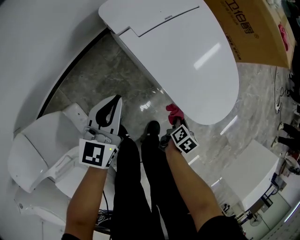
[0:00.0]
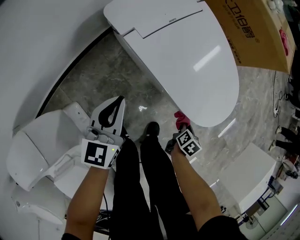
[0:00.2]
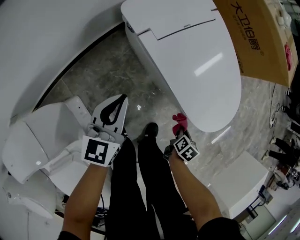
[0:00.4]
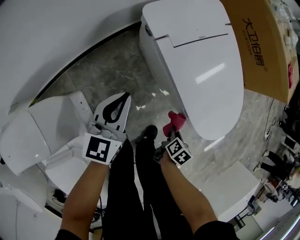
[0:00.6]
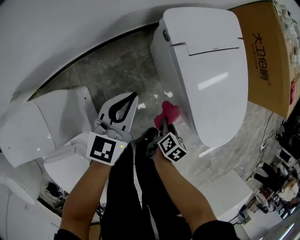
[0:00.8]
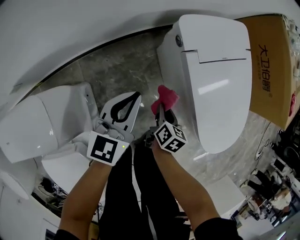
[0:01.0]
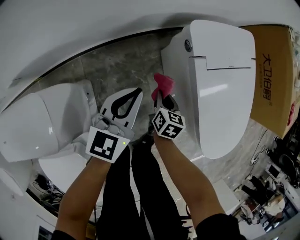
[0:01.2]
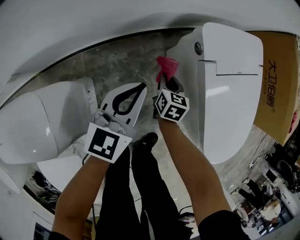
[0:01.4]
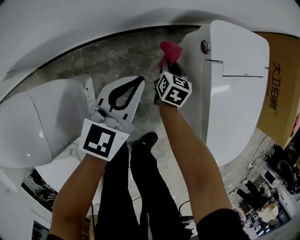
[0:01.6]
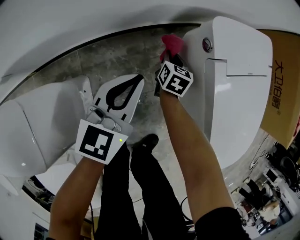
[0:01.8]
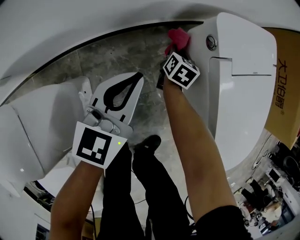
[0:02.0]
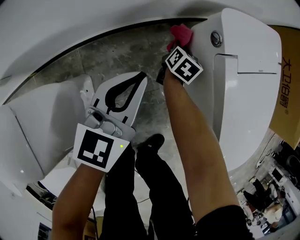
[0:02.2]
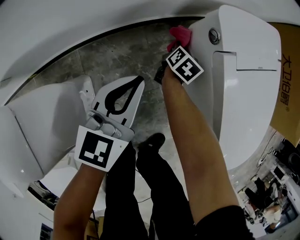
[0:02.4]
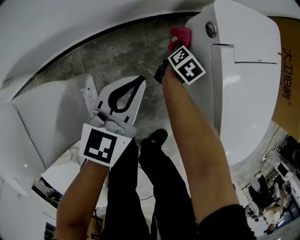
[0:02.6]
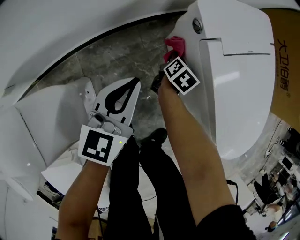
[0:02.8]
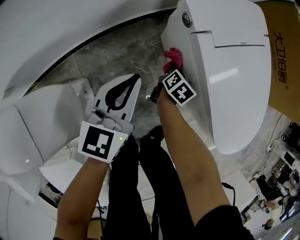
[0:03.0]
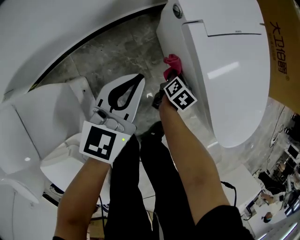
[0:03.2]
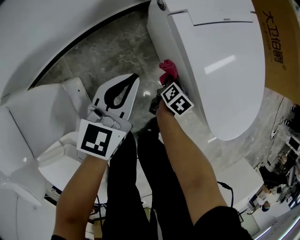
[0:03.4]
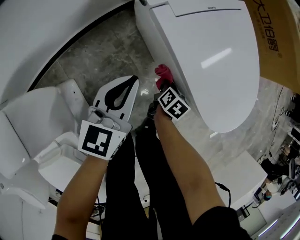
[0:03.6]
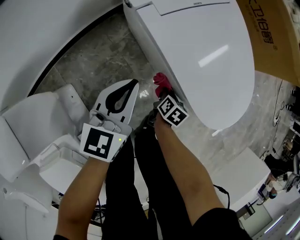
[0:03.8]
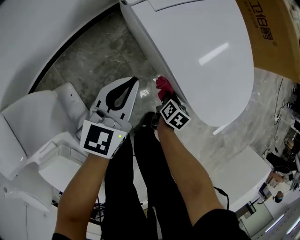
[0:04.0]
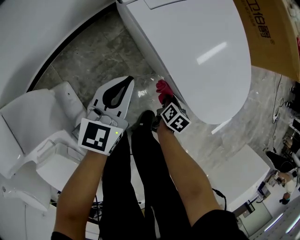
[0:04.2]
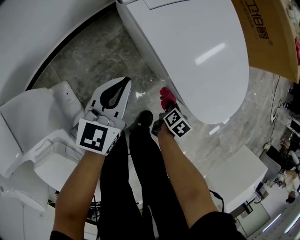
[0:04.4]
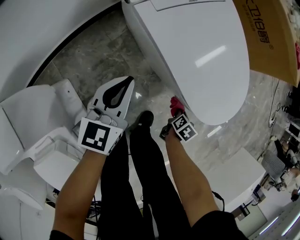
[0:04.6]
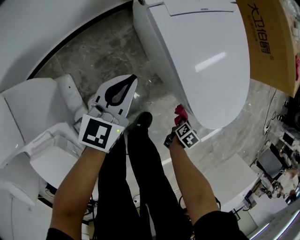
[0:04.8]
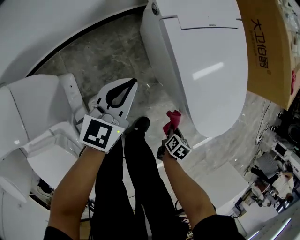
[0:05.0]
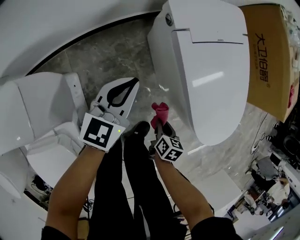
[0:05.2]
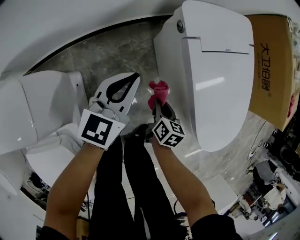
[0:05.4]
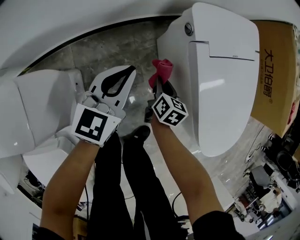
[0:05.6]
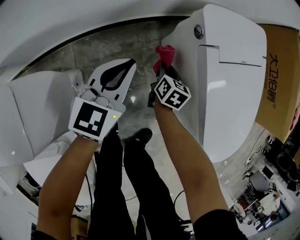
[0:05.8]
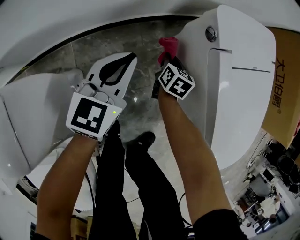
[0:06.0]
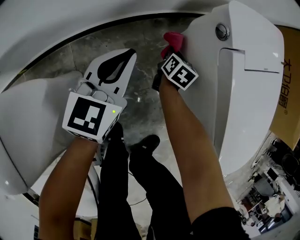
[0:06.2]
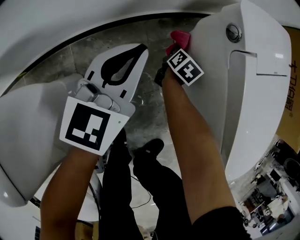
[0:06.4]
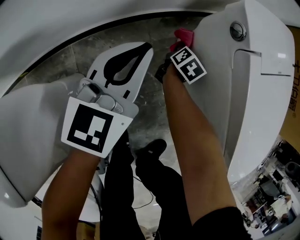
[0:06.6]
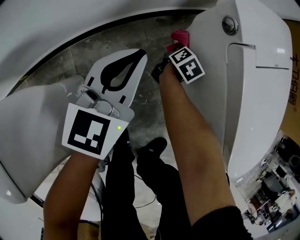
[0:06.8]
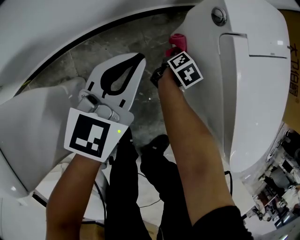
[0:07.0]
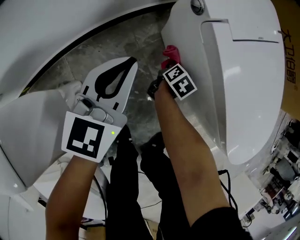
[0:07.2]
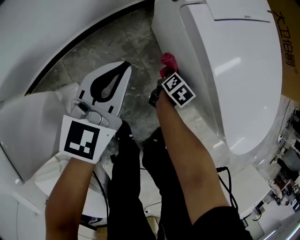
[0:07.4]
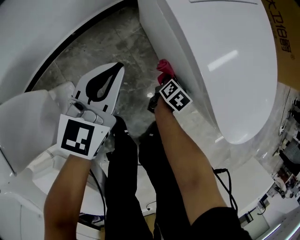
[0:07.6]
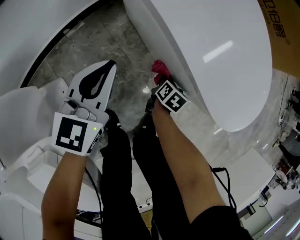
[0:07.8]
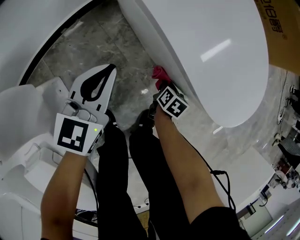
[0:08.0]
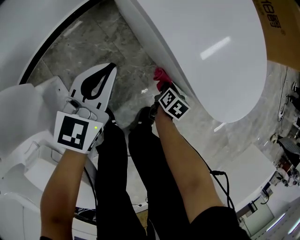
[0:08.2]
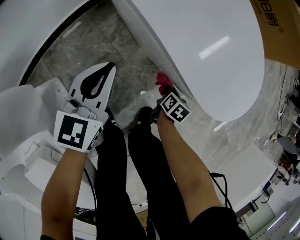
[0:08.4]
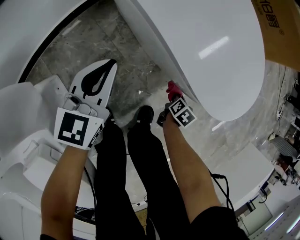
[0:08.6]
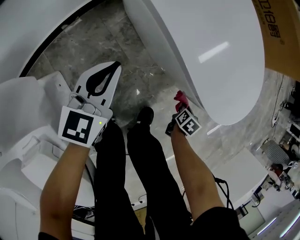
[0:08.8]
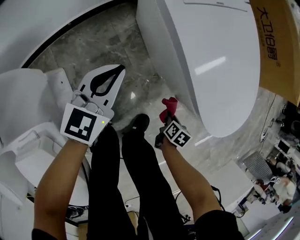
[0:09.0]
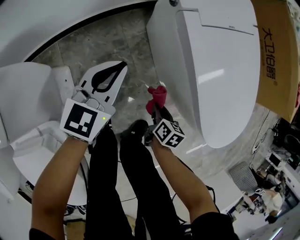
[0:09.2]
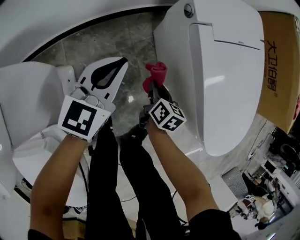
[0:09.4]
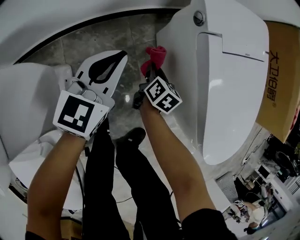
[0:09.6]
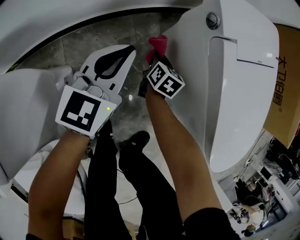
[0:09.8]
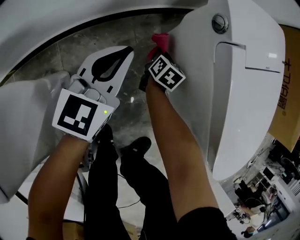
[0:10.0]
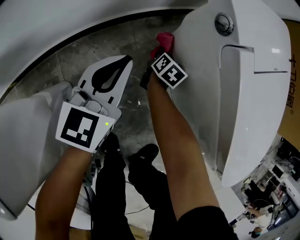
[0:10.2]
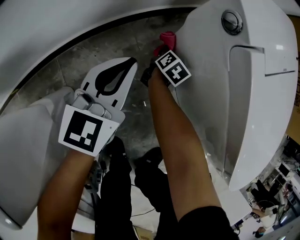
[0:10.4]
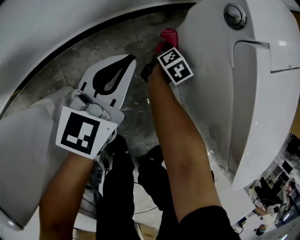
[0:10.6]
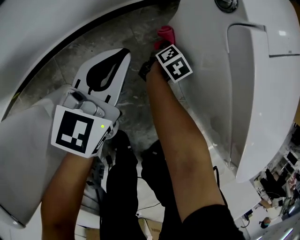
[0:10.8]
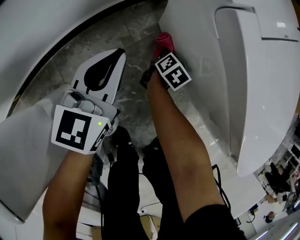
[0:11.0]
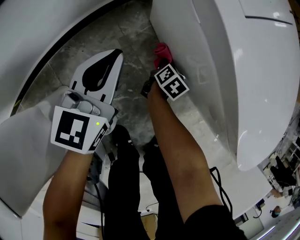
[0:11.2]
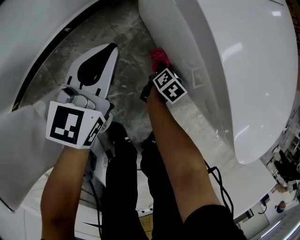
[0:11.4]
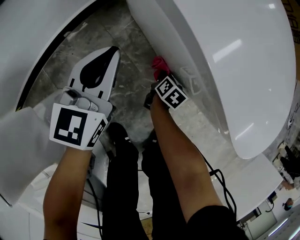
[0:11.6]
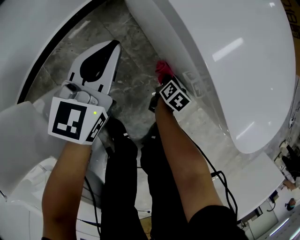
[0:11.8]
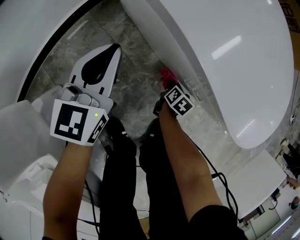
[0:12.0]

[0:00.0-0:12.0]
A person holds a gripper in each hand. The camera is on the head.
0:00.0 to 0:01.6: The right gripper shifts by some 40 cm, and rotates around the line of its fingers by approximately 50 degrees, counterclockwise from behind. Meanwhile the left gripper ends up roughly 15 cm from where it was.
0:01.6 to 0:03.0: The right gripper travels to the right by some 10 cm, and turns by about 40 degrees; the left gripper shifts approximately 5 cm to the right.
0:03.0 to 0:04.4: The left gripper travels to the right by about 15 cm. The right gripper goes some 30 cm to the right and backward.
0:04.4 to 0:06.0: The left gripper changes place by about 20 cm; the right gripper goes upward and returns, some 5 cm each way, and rotates approximately 50 degrees.
0:06.0 to 0:07.6: The right gripper shifts approximately 25 cm to the right and backward, and swivels some 40 degrees. Meanwhile the left gripper shifts approximately 10 cm to the right.
0:07.6 to 0:09.0: The right gripper shifts roughly 20 cm to the right and backward.
0:09.0 to 0:10.4: The left gripper is displaced forward, to the left and downward by about 20 cm. Meanwhile the right gripper travels forward and to the left by some 50 cm, and turns by approximately 20 degrees.
0:10.4 to 0:12.0: The left gripper travels to the right by approximately 15 cm. The right gripper shifts approximately 35 cm to the right and backward.

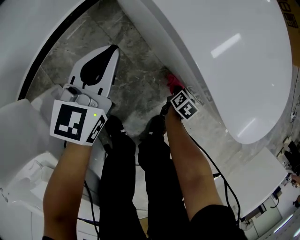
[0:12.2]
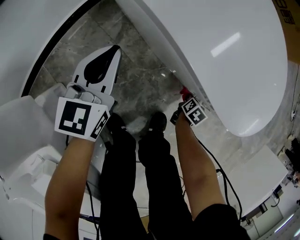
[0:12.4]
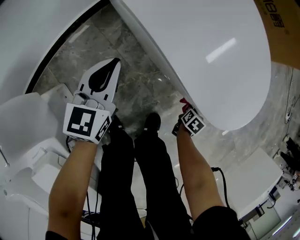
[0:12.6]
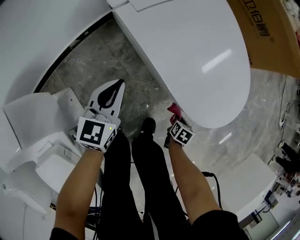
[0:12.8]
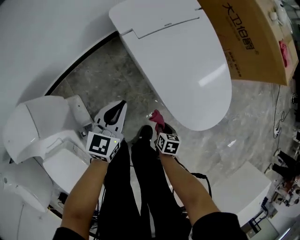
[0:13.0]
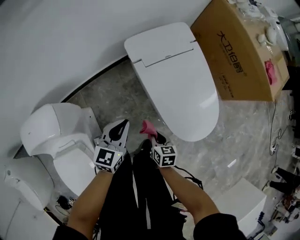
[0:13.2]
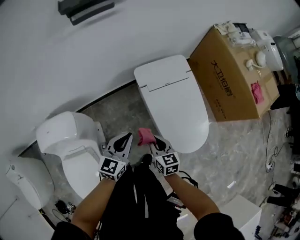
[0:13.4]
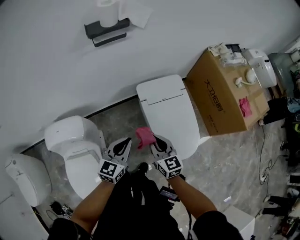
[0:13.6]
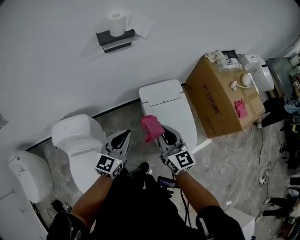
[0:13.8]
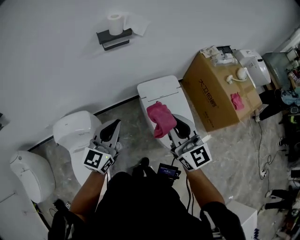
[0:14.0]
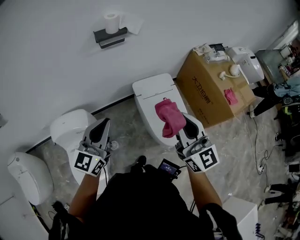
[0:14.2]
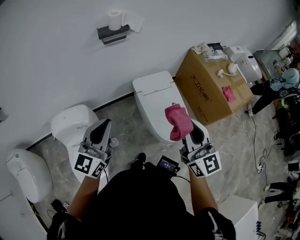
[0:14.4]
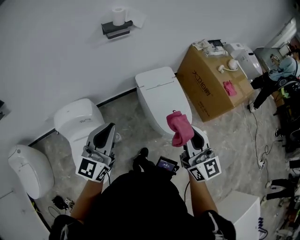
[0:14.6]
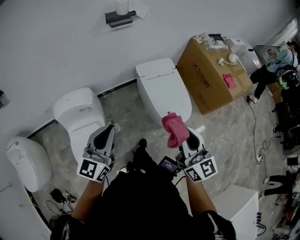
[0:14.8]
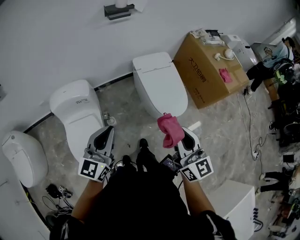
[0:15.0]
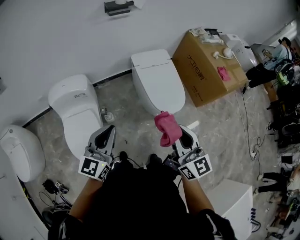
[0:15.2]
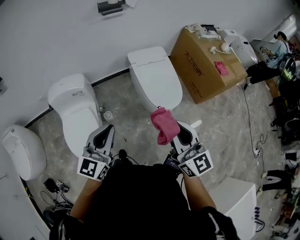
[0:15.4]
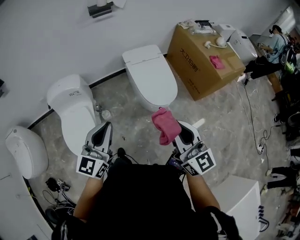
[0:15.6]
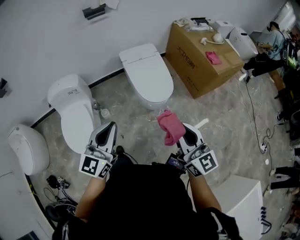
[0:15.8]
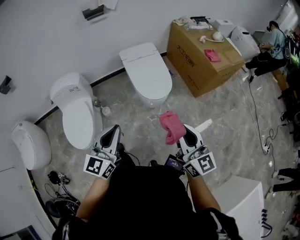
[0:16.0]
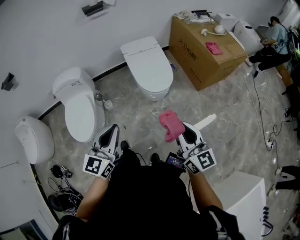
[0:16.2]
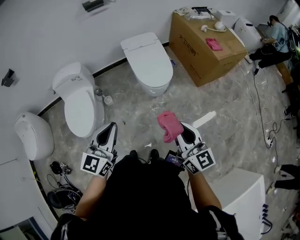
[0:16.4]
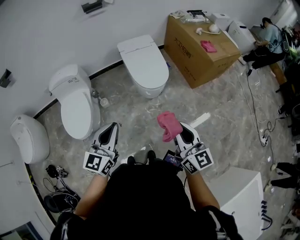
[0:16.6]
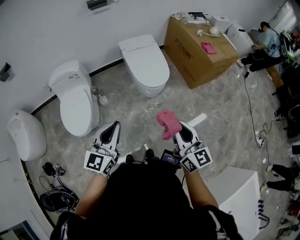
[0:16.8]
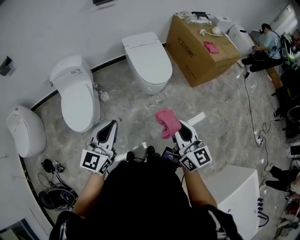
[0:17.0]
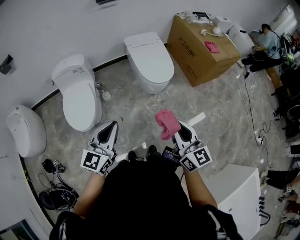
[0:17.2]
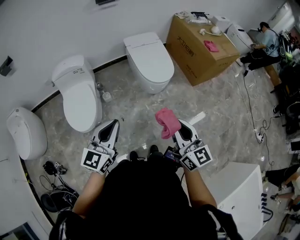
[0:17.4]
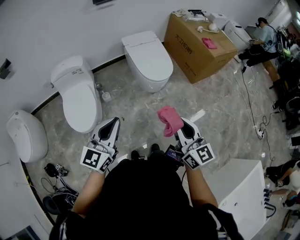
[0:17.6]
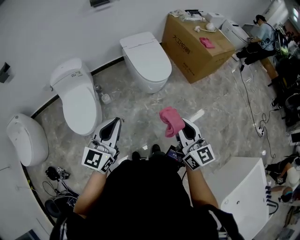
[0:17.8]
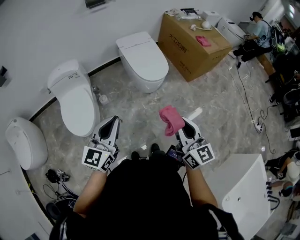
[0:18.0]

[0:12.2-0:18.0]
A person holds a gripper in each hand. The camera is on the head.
0:12.2 to 0:13.6: The left gripper shifts about 40 cm upward, while the right gripper shifts about 70 cm upward, and points its fingers about 40 degrees further upward.
0:13.6 to 0:15.0: Both grippers move backward and upward, roughly 35 cm. The right gripper rotates approximately 20 degrees.
0:15.0 to 0:16.6: Both grippers travel together backward and to the right, roughly 35 cm.
0:16.6 to 0:18.0: Both grippers travel together to the left and backward, about 10 cm.

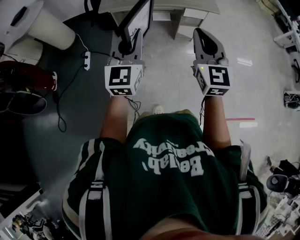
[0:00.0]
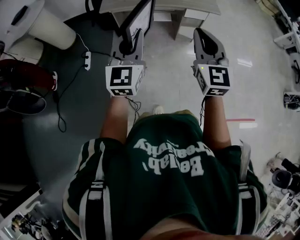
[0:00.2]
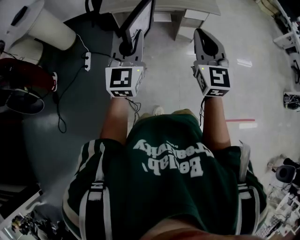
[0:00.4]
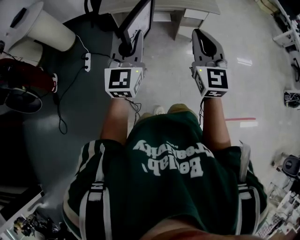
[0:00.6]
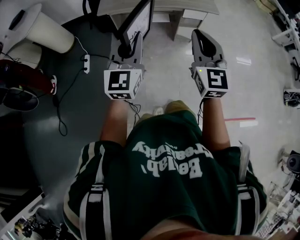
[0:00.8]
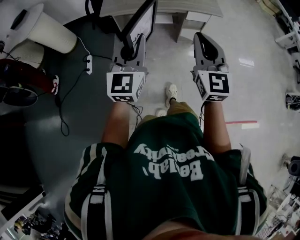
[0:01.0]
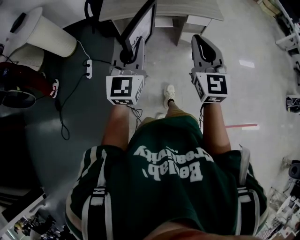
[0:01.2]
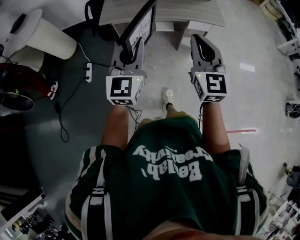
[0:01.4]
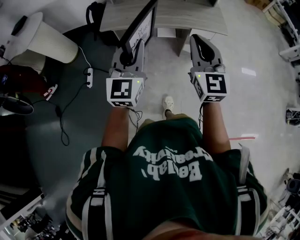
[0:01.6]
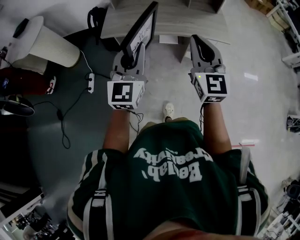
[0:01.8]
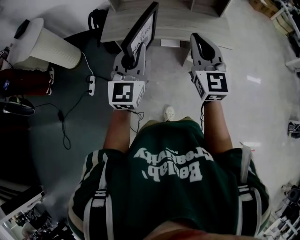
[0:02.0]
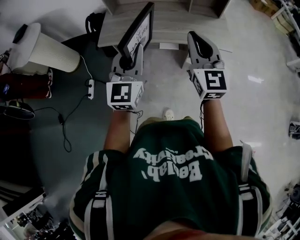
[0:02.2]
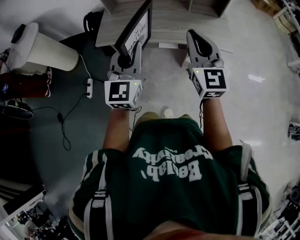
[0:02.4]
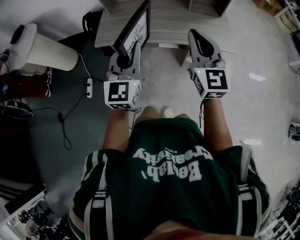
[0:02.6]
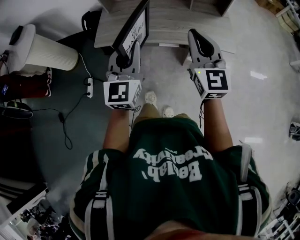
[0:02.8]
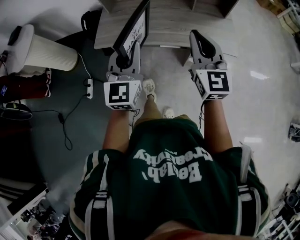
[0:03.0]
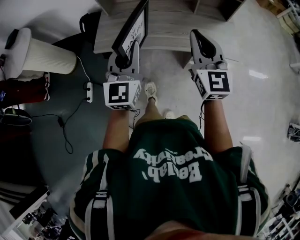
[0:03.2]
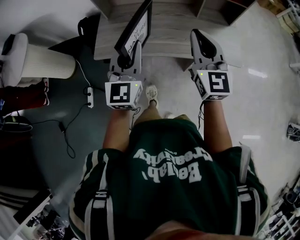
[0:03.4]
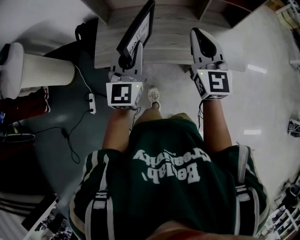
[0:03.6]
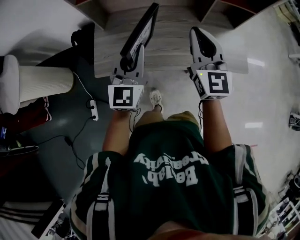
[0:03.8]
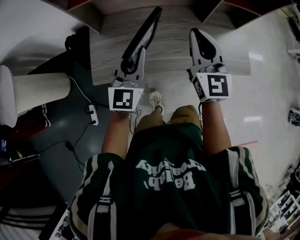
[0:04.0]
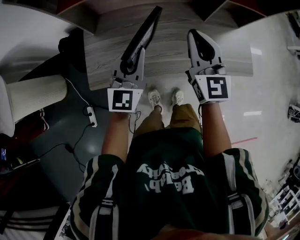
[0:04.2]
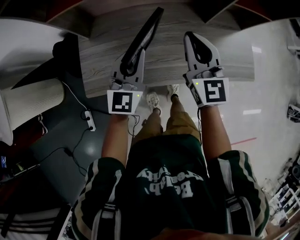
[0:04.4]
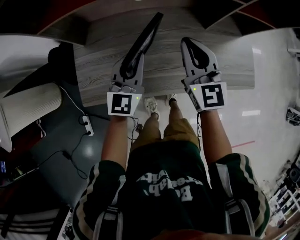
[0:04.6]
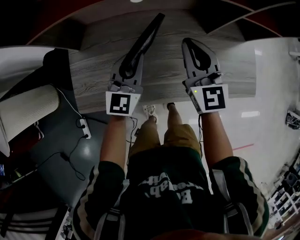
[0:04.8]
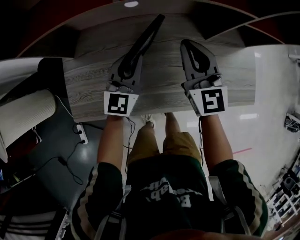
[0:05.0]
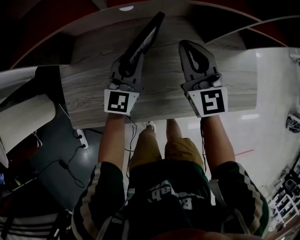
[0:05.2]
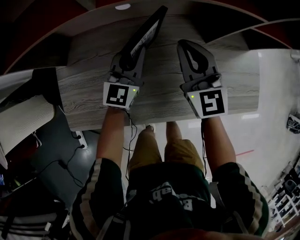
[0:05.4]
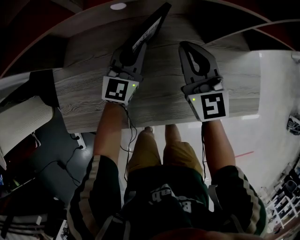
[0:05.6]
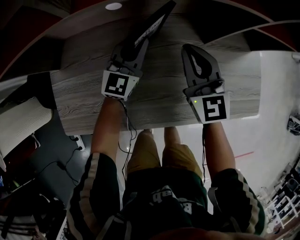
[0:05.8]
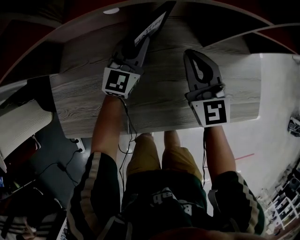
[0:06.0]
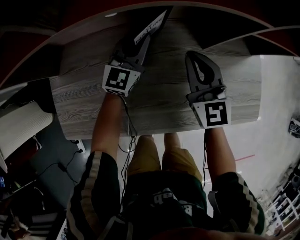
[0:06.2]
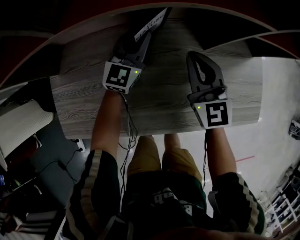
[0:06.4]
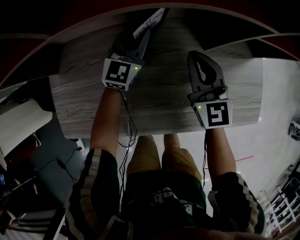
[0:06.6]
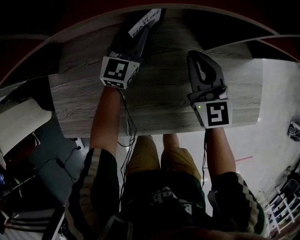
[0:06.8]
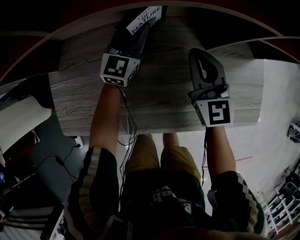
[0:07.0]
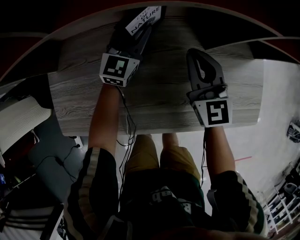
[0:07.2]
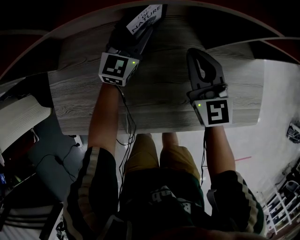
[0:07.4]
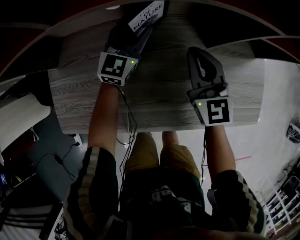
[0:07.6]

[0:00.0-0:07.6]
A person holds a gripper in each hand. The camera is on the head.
0:00.0 to 0:01.6: Both grippers travel together forward, roughly 15 cm.
0:01.6 to 0:03.0: The grippers both shift forward by about 25 cm.
0:03.0 to 0:04.6: Both grippers are carried forward, about 40 cm. The two grippers go approximately 20 cm downward.
0:04.6 to 0:06.0: The left gripper moves forward, downward and to the right, some 25 cm, while the right gripper is displaced downward, forward and to the right by roughly 20 cm.
0:06.0 to 0:07.6: The left gripper opens.
